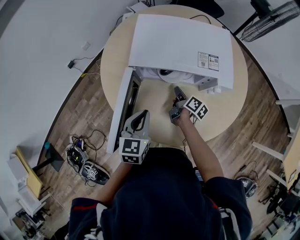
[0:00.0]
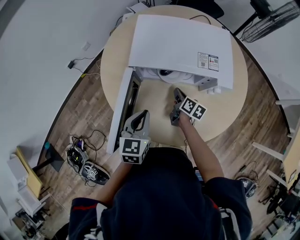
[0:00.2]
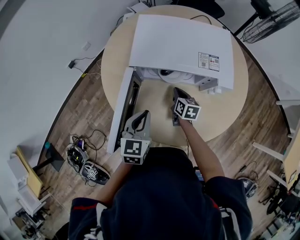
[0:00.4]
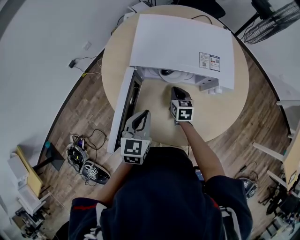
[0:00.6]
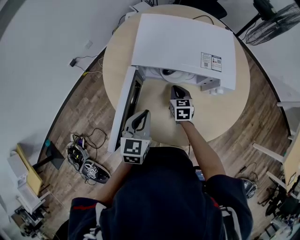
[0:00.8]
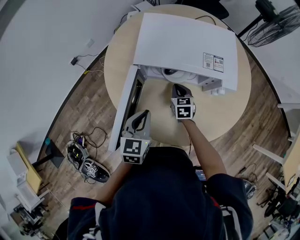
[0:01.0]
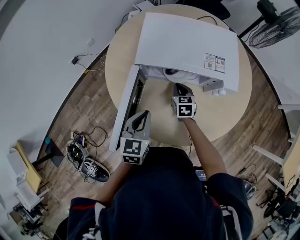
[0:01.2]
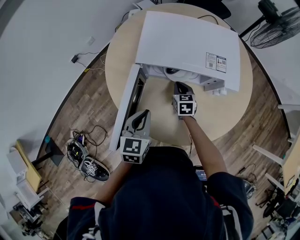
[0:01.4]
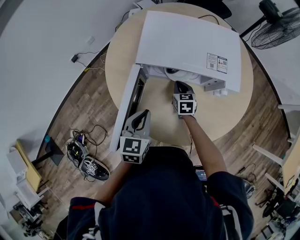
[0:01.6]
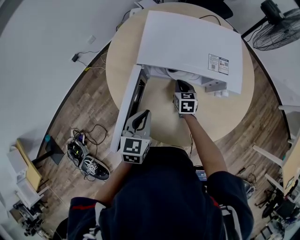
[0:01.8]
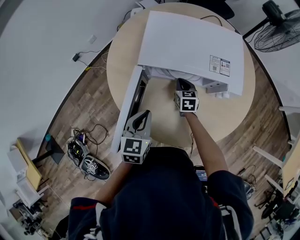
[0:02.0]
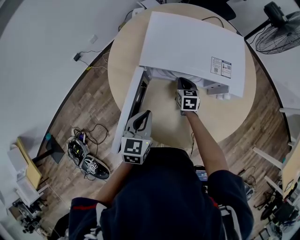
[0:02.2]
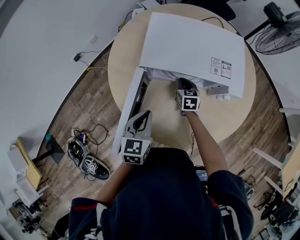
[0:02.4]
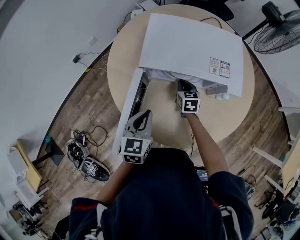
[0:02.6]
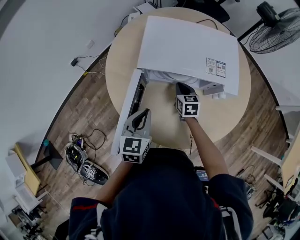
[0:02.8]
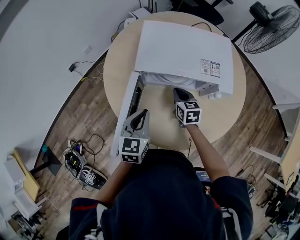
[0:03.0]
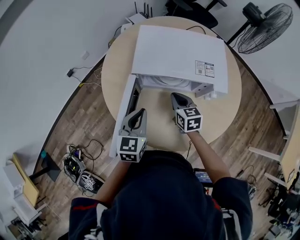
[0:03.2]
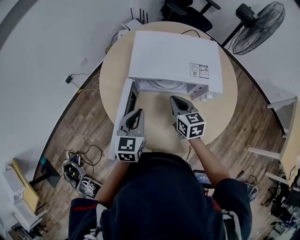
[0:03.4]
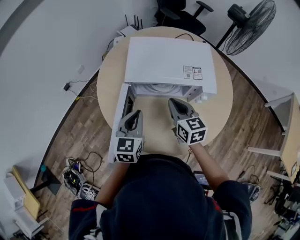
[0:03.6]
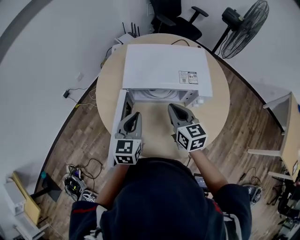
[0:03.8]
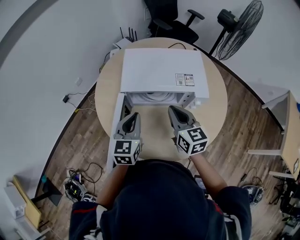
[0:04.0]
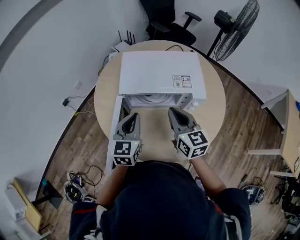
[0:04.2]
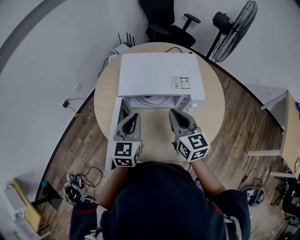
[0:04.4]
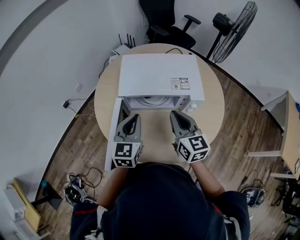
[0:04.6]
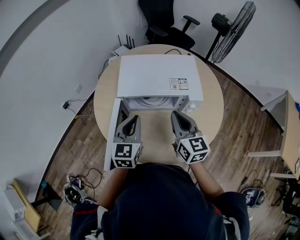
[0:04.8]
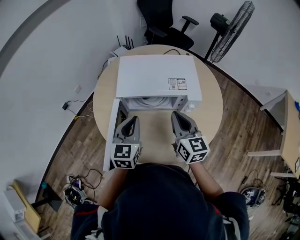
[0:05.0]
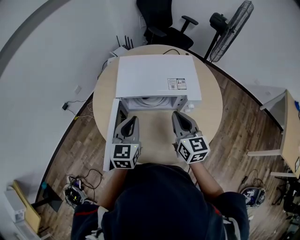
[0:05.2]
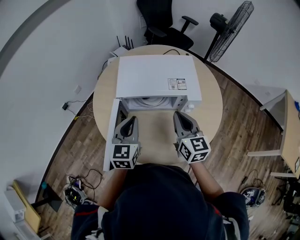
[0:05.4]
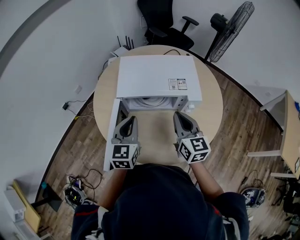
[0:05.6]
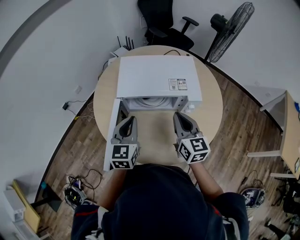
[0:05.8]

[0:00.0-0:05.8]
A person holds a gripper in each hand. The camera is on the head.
0:00.0 to 0:01.4: The right gripper moves some 5 cm, and twists about 60 degrees counterclockwise, seen from behind.
0:01.4 to 0:02.8: The grippers make only small movements.
0:02.8 to 0:04.4: The right gripper goes approximately 25 cm upward and backward, and turns by about 30 degrees, while the left gripper shifts approximately 10 cm upward.
0:04.4 to 0:05.8: The grippers move only a little.

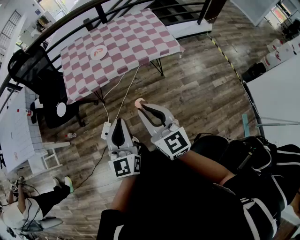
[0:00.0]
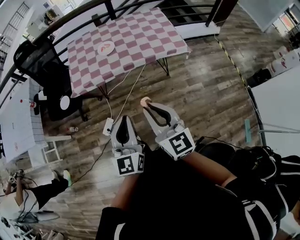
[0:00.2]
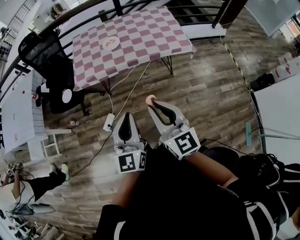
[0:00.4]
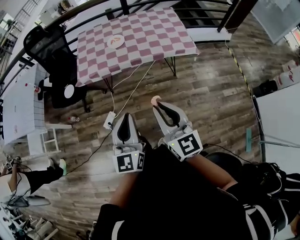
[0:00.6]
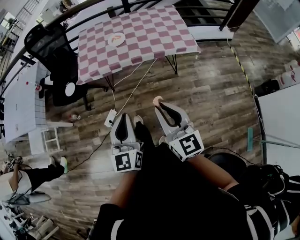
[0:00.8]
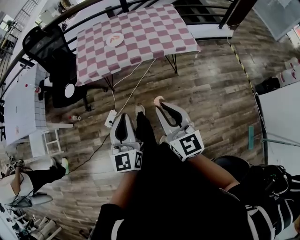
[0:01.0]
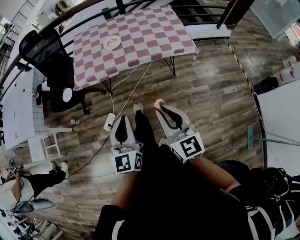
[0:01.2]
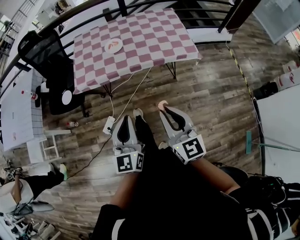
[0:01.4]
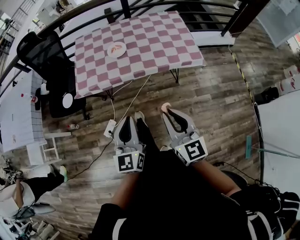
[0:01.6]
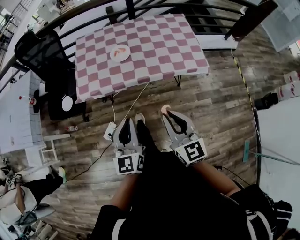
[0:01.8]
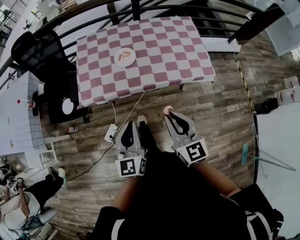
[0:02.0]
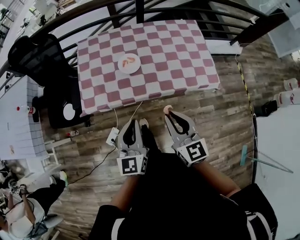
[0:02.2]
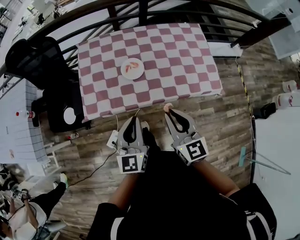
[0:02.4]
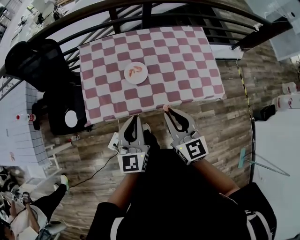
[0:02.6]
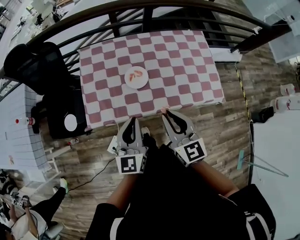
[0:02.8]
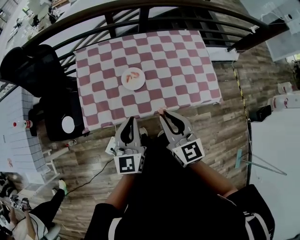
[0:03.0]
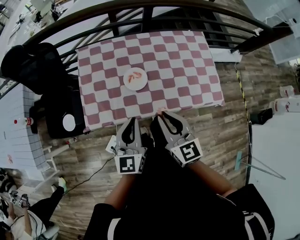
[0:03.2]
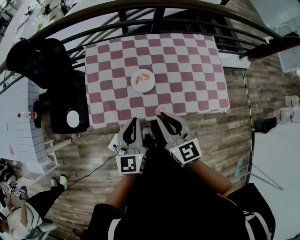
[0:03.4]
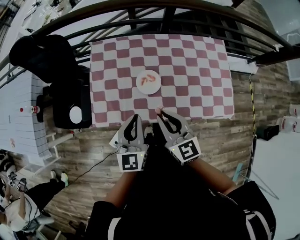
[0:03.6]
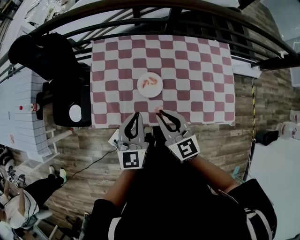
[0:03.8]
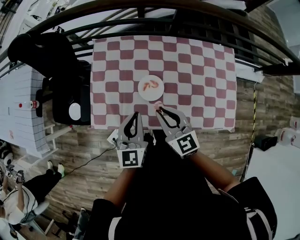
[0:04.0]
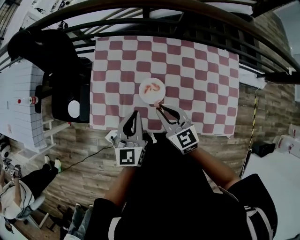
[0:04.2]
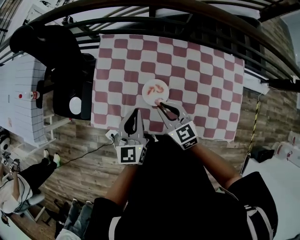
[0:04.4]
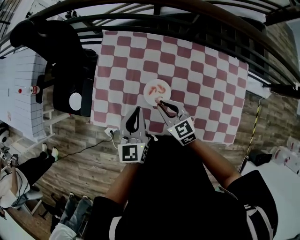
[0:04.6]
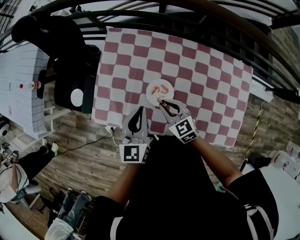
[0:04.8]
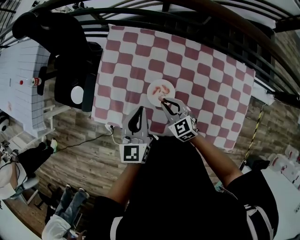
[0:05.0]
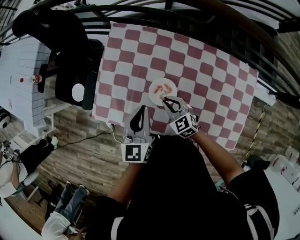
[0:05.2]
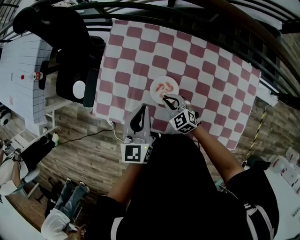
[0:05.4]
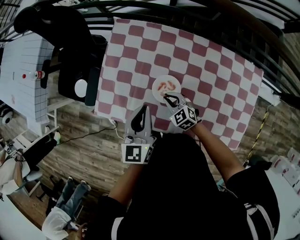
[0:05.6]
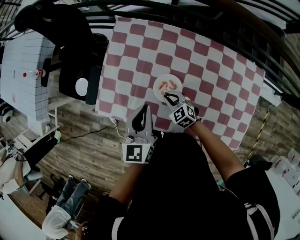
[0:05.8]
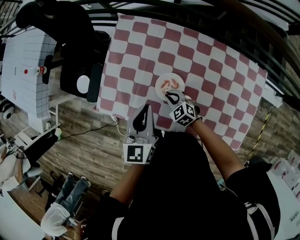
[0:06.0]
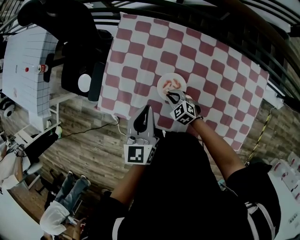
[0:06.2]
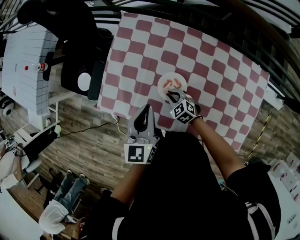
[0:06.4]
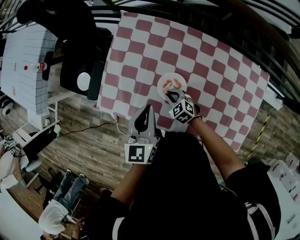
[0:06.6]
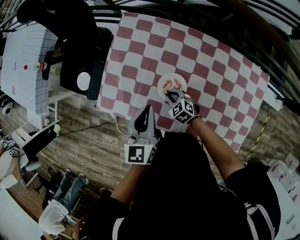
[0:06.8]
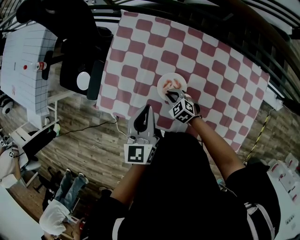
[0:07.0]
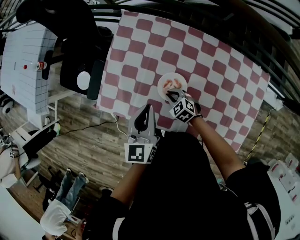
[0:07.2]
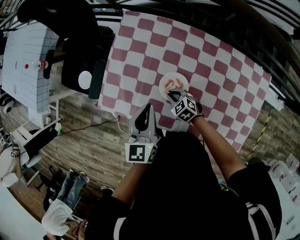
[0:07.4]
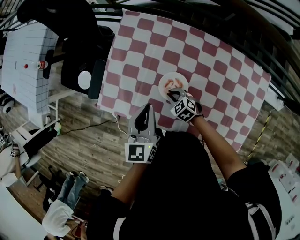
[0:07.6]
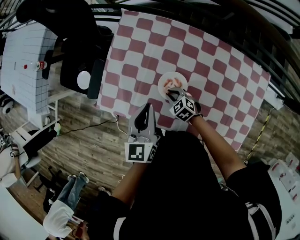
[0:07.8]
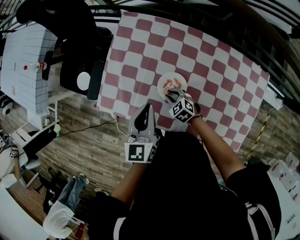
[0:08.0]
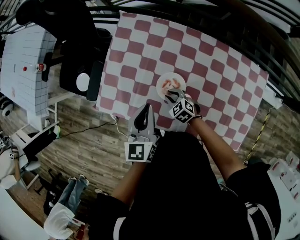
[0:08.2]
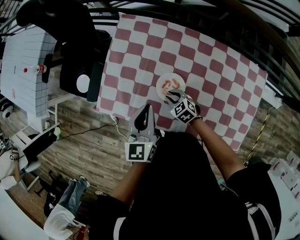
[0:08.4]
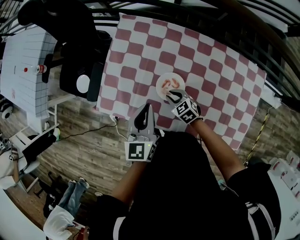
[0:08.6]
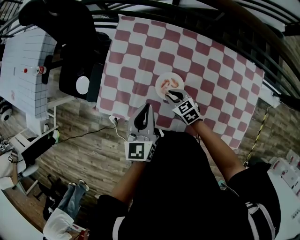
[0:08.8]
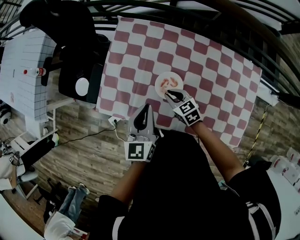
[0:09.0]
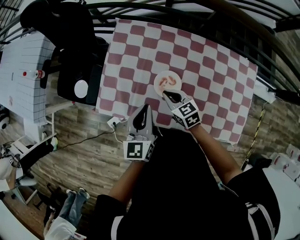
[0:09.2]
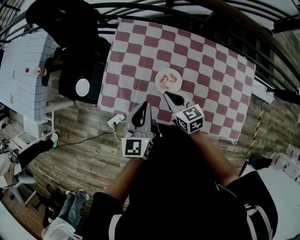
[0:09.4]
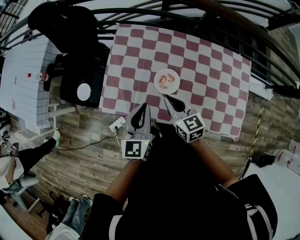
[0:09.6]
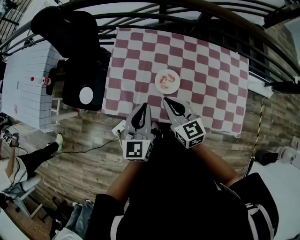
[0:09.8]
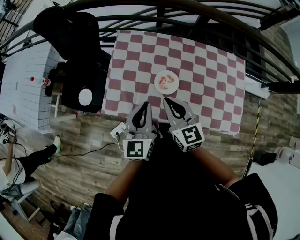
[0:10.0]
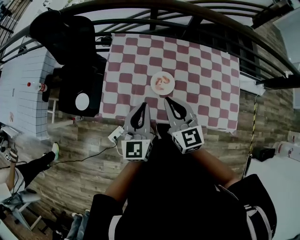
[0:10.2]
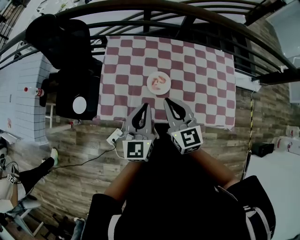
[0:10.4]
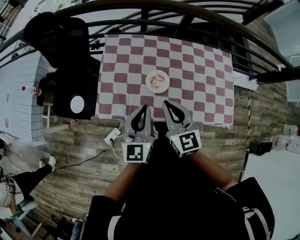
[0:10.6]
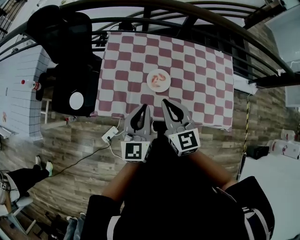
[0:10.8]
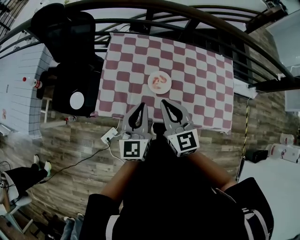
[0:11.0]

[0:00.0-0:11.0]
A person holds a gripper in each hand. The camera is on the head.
0:00.0 to 0:01.6: The two grippers go approximately 10 cm forward and downward.
0:01.6 to 0:03.2: The grippers both shift forward by some 35 cm.
0:03.2 to 0:04.8: The right gripper shifts by about 30 cm, and changes its angle by roughly 40 degrees. The left gripper ends up roughly 20 cm from where it was, and turns by about 20 degrees.
0:04.8 to 0:06.2: The right gripper shifts some 15 cm downward, and changes its angle by approximately 20 degrees.
0:06.2 to 0:07.8: The grippers stay close to where they were, moving slightly.
0:07.8 to 0:09.4: The right gripper shifts approximately 20 cm upward, and changes its angle by about 40 degrees, while the left gripper shifts by roughly 5 cm.
0:09.4 to 0:11.0: The left gripper shifts some 10 cm upward and backward. Meanwhile the right gripper is displaced upward and backward by roughly 20 cm, and changes its angle by some 30 degrees.

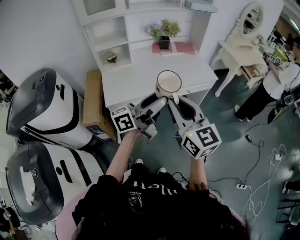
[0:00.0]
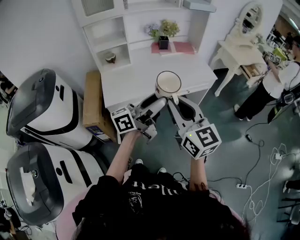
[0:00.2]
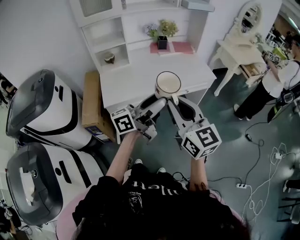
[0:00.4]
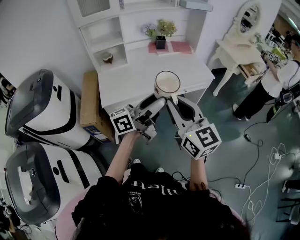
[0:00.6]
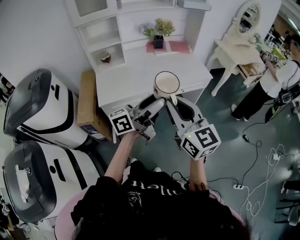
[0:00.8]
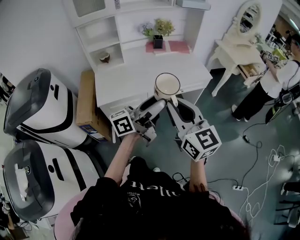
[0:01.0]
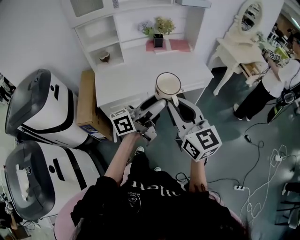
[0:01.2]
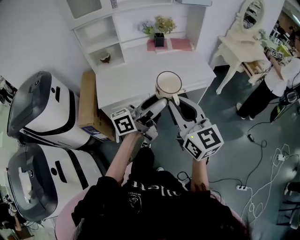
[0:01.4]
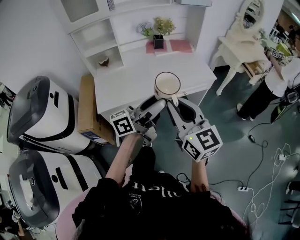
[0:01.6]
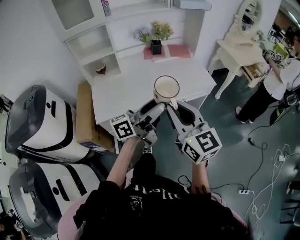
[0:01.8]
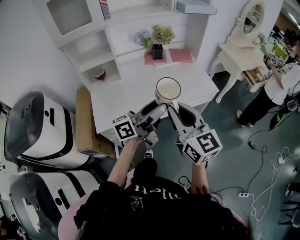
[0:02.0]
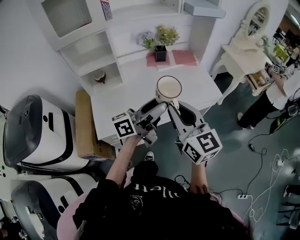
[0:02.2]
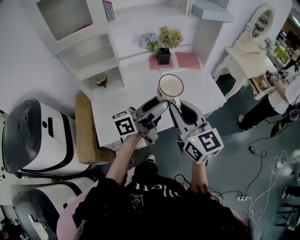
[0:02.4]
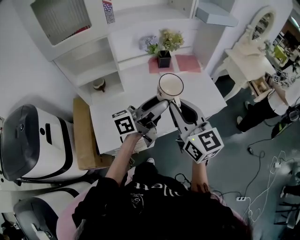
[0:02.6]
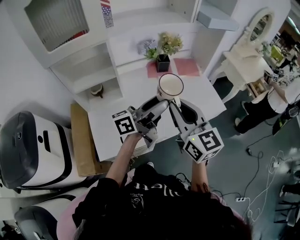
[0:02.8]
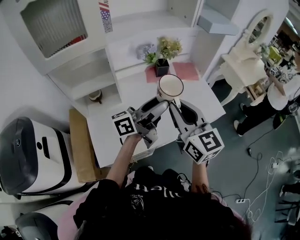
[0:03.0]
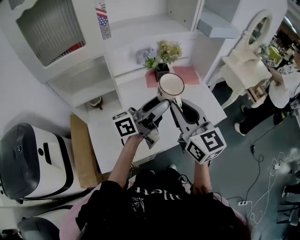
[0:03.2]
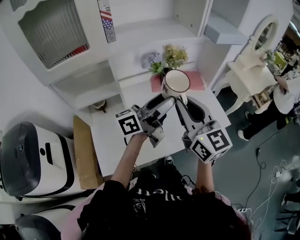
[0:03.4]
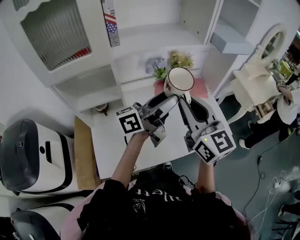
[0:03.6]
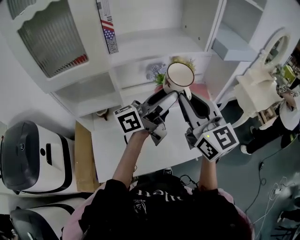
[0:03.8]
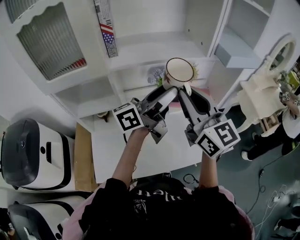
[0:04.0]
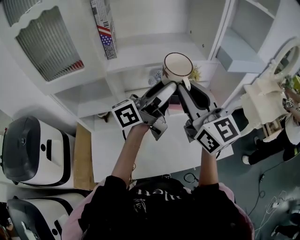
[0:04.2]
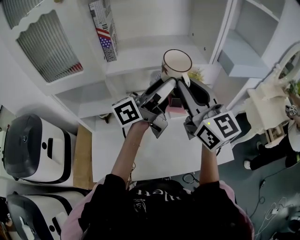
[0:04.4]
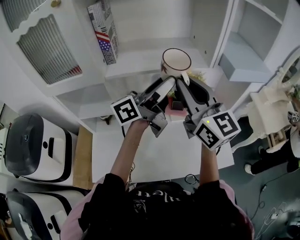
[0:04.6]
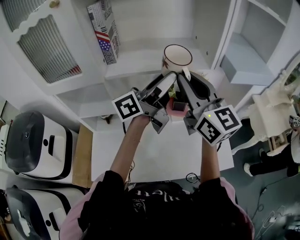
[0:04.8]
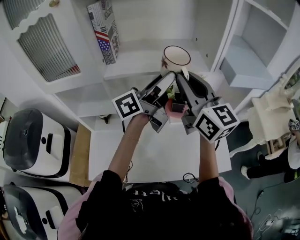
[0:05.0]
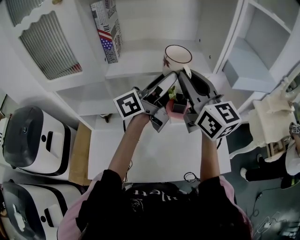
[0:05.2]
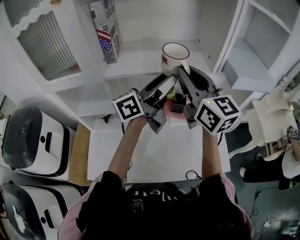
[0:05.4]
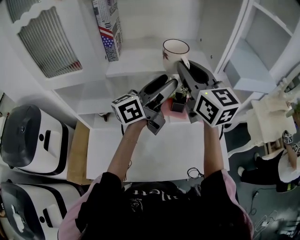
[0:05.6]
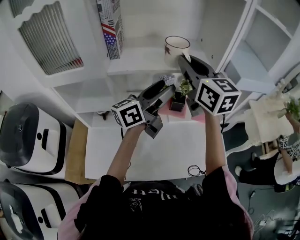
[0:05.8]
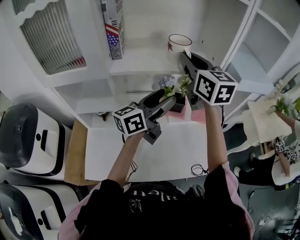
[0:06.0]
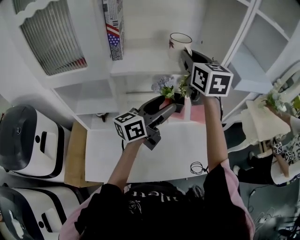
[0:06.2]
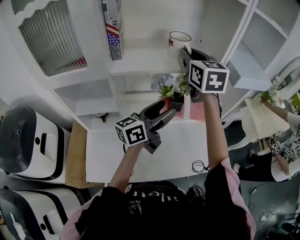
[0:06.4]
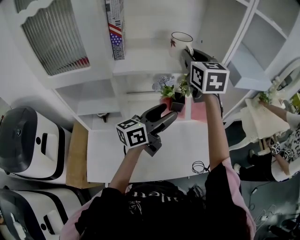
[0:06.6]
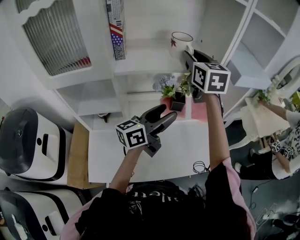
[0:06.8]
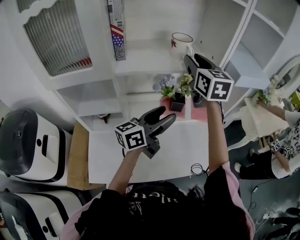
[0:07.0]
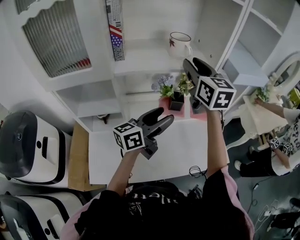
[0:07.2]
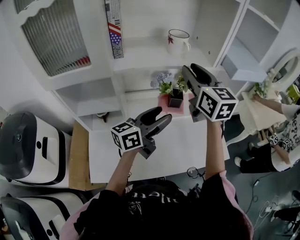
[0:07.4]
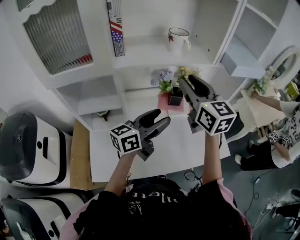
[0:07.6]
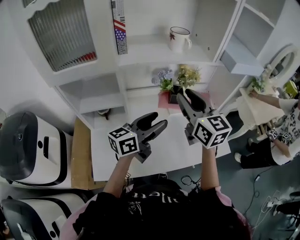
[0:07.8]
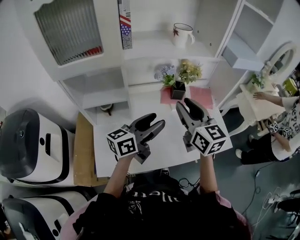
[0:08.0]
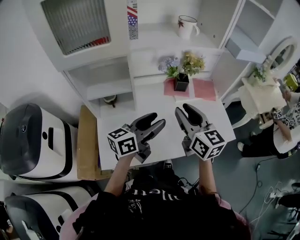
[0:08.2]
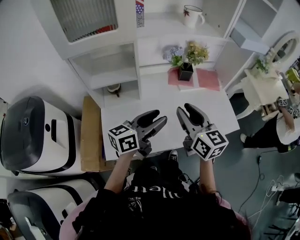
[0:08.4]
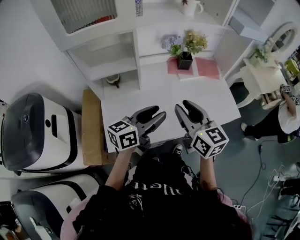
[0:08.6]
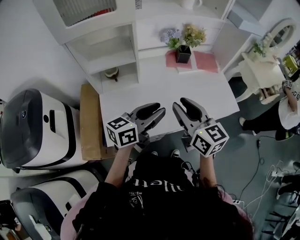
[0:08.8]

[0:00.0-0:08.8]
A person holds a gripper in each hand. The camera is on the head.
0:00.0 to 0:01.4: The grippers both shift to the right by about 10 cm.
0:01.4 to 0:03.0: Both grippers are carried forward and to the left, some 40 cm.
0:03.0 to 0:04.4: The grippers both shift forward and upward by some 25 cm. The right gripper rotates some 20 degrees.
0:04.4 to 0:05.8: The left gripper ends up some 5 cm from where it was; the right gripper goes some 10 cm forward.
0:05.8 to 0:07.4: The left gripper shifts about 10 cm backward and downward.
0:07.4 to 0:08.8: The left gripper travels backward by some 20 cm, and closes its fingers; the right gripper heads backward and downward, covering some 35 cm.
